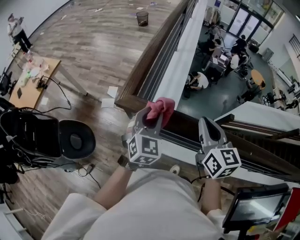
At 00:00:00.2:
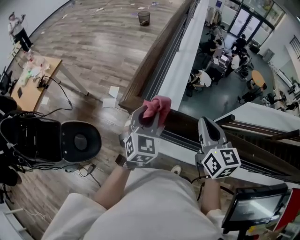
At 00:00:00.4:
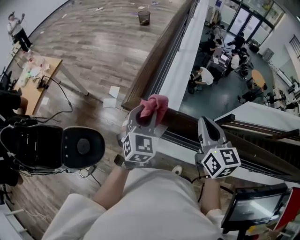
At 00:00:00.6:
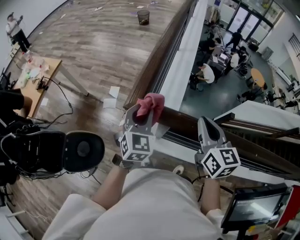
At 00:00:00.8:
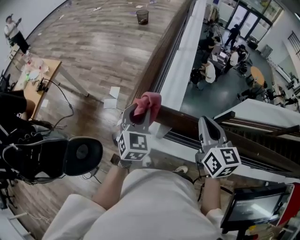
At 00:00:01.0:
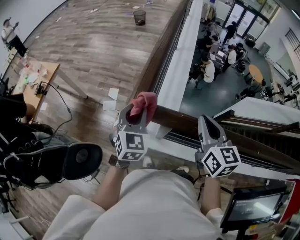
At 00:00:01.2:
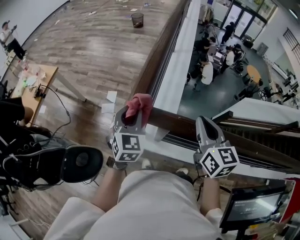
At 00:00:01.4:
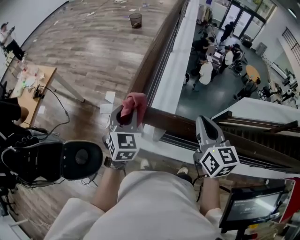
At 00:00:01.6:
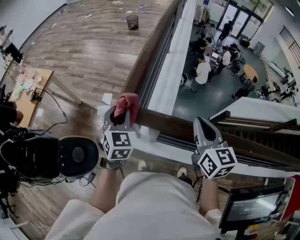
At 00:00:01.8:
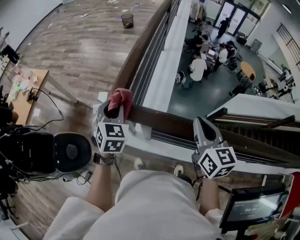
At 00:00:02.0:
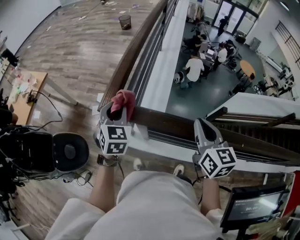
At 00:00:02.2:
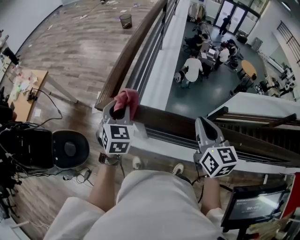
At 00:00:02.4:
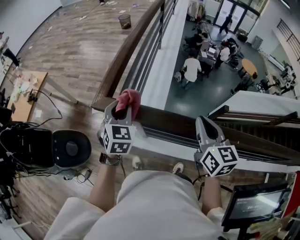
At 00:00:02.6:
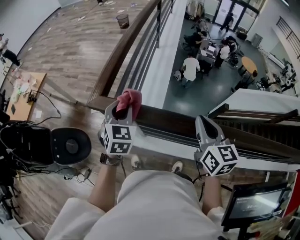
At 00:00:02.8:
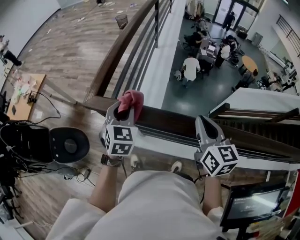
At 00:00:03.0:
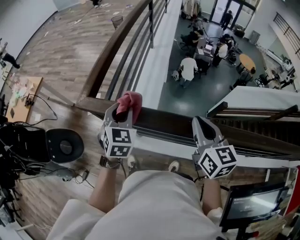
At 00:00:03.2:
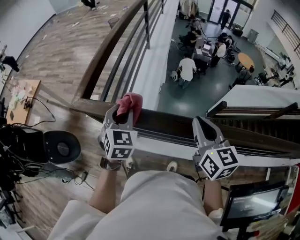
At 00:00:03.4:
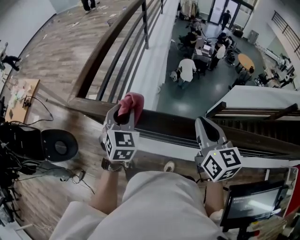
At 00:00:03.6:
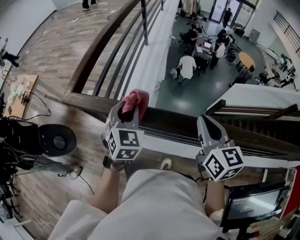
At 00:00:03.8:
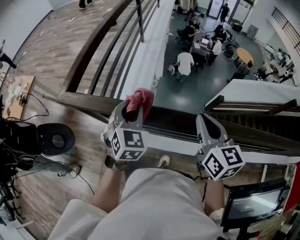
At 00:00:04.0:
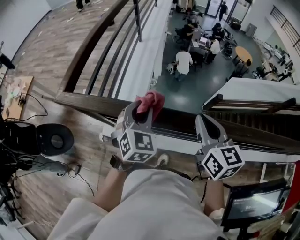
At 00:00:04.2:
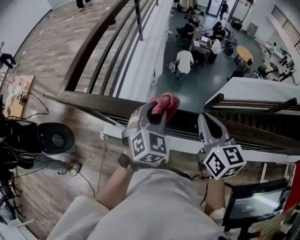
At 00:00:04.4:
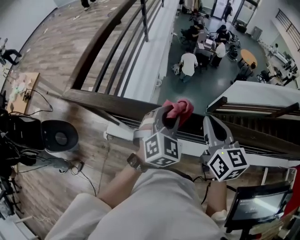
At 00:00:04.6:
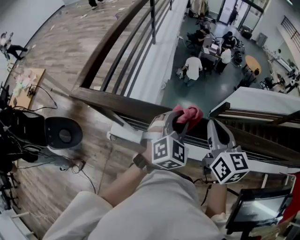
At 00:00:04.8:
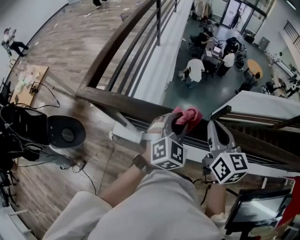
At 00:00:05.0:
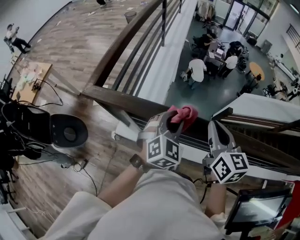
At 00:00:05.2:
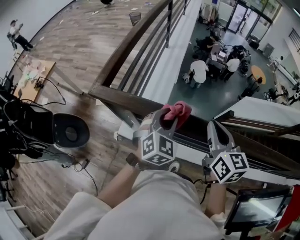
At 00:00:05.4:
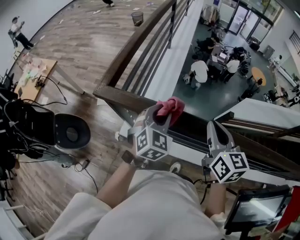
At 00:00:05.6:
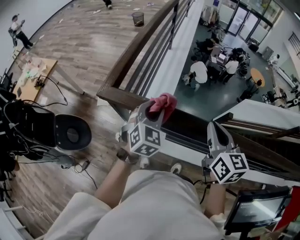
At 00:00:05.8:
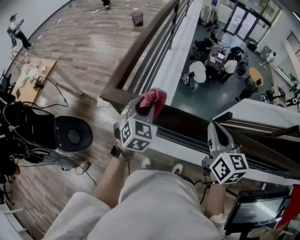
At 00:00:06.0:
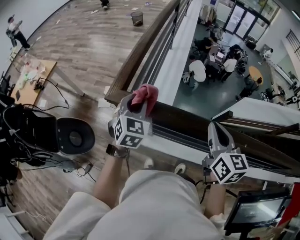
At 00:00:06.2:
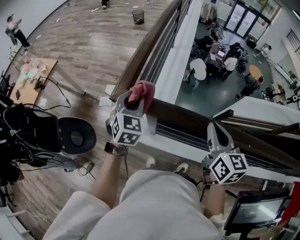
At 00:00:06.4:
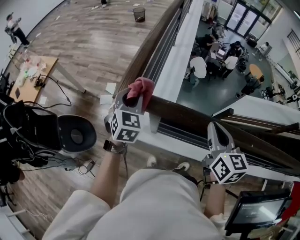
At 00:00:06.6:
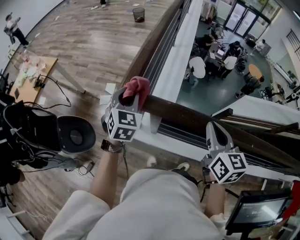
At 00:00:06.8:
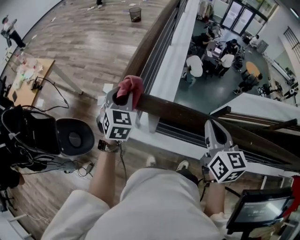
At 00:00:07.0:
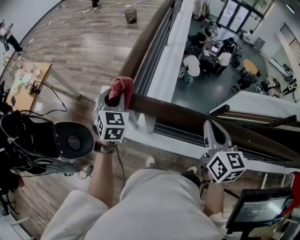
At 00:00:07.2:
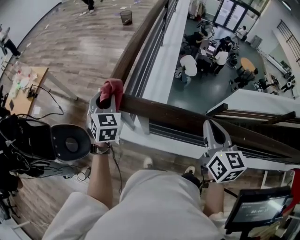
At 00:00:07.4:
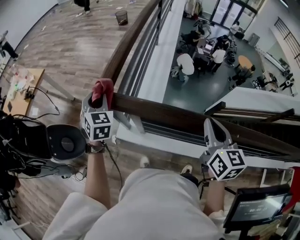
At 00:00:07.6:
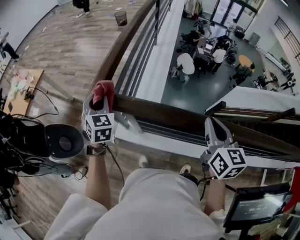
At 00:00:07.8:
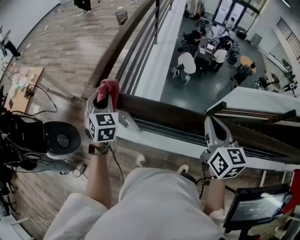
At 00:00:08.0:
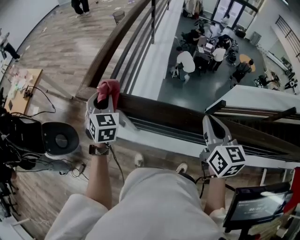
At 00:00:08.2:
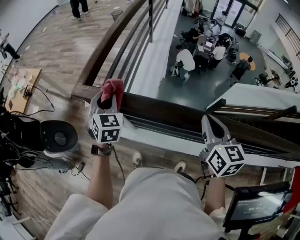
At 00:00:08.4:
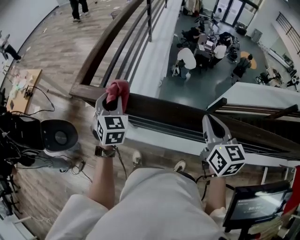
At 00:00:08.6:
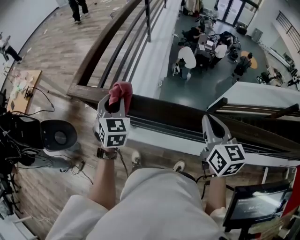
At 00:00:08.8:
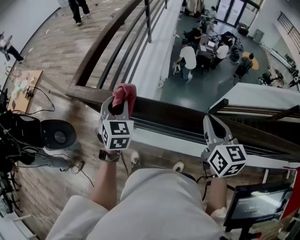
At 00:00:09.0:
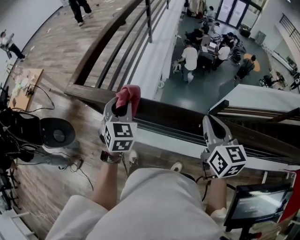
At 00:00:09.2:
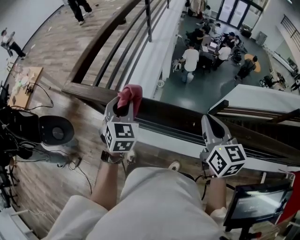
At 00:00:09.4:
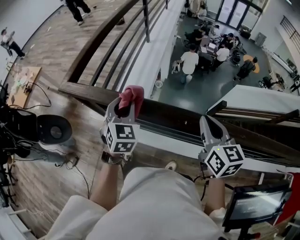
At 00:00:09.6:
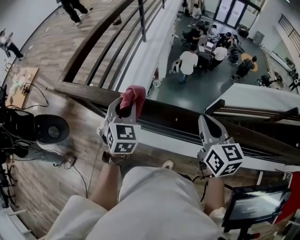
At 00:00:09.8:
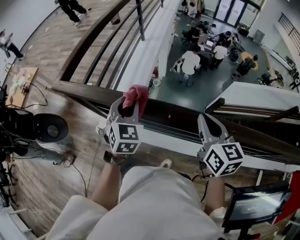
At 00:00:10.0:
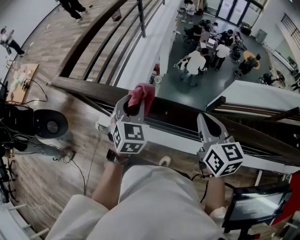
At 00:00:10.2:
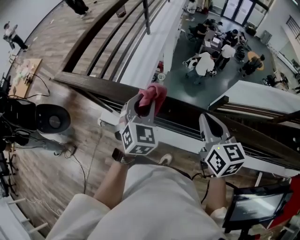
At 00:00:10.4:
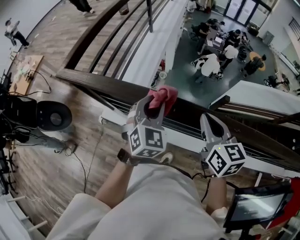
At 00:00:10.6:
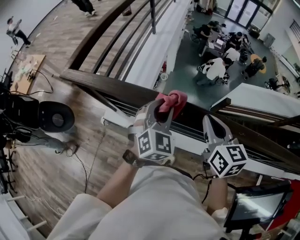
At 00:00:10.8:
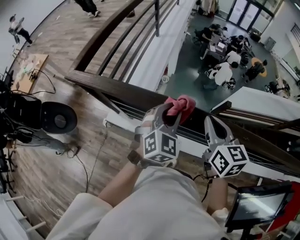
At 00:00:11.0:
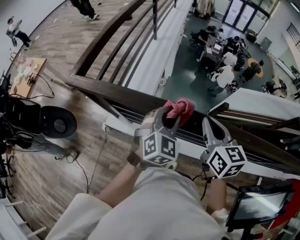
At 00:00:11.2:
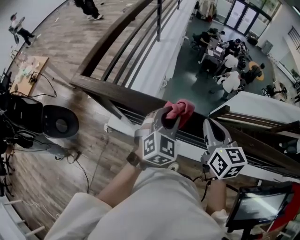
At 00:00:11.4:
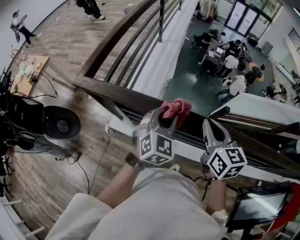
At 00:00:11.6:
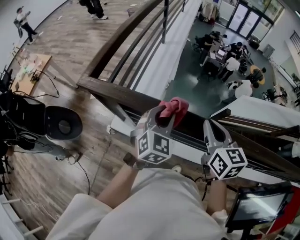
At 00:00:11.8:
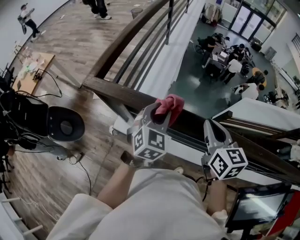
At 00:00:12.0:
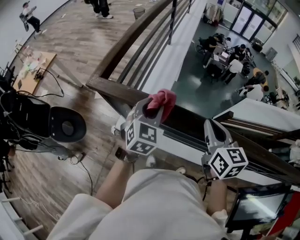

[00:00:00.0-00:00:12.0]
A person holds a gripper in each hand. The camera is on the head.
00:00:00.0 to 00:00:01.6: The left gripper shifts about 15 cm to the left and forward.
00:00:01.6 to 00:00:03.0: The right gripper is displaced to the right and backward by approximately 15 cm. Meanwhile the left gripper heads to the right, covering about 15 cm.
00:00:03.0 to 00:00:04.4: The left gripper heads to the right, covering roughly 25 cm, and changes its angle by roughly 20 degrees, while the right gripper moves to the right, about 10 cm.
00:00:04.4 to 00:00:06.0: The right gripper travels to the left by about 20 cm; the left gripper travels to the left by some 35 cm, and swivels some 20 degrees.
00:00:06.0 to 00:00:07.6: The right gripper travels to the right by some 5 cm. The left gripper moves to the left, some 10 cm.
00:00:07.6 to 00:00:09.0: The left gripper moves to the right and backward, roughly 25 cm, while the right gripper shifts roughly 10 cm to the right.
00:00:09.0 to 00:00:10.4: The left gripper moves to the right and backward, roughly 20 cm. Meanwhile the right gripper is displaced to the right by some 5 cm.
00:00:10.4 to 00:00:12.0: Both grippers move to the left, about 15 cm.

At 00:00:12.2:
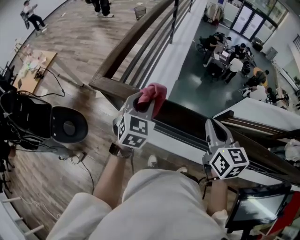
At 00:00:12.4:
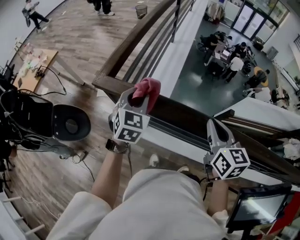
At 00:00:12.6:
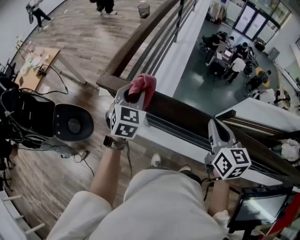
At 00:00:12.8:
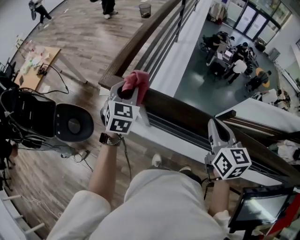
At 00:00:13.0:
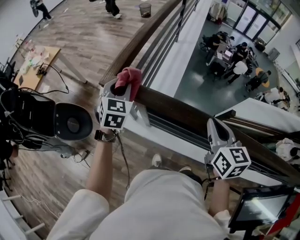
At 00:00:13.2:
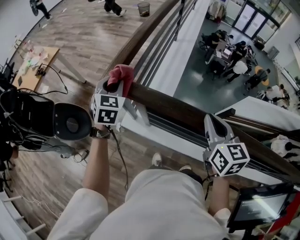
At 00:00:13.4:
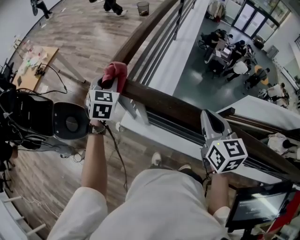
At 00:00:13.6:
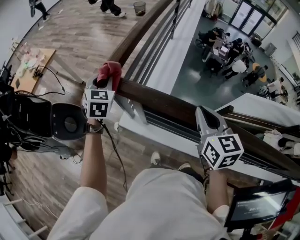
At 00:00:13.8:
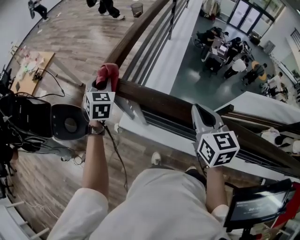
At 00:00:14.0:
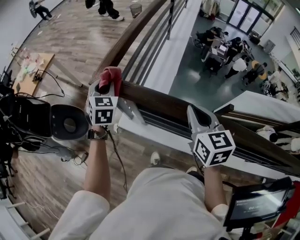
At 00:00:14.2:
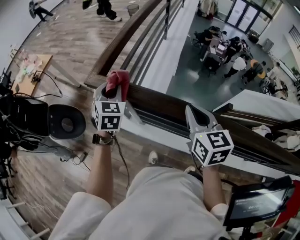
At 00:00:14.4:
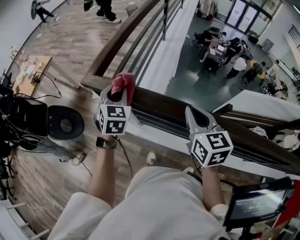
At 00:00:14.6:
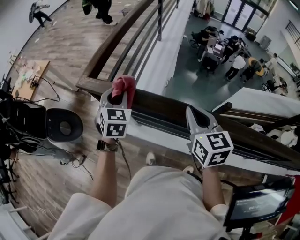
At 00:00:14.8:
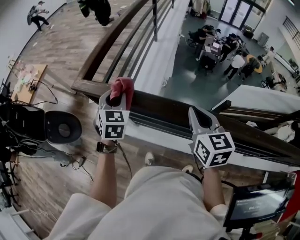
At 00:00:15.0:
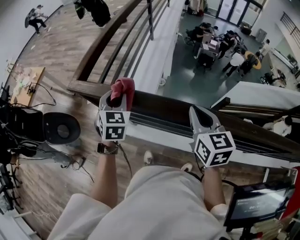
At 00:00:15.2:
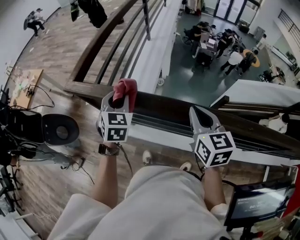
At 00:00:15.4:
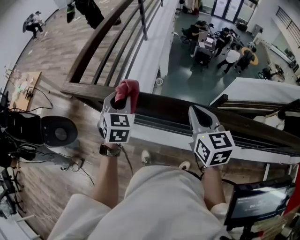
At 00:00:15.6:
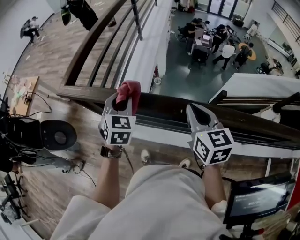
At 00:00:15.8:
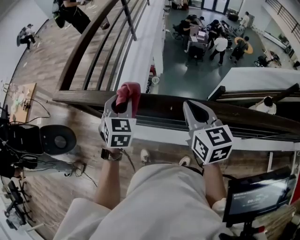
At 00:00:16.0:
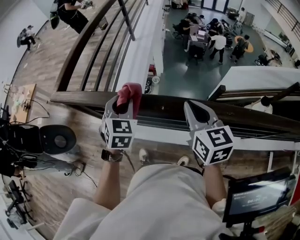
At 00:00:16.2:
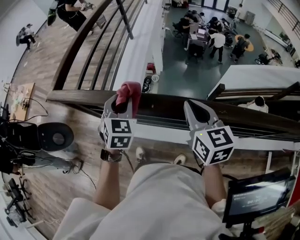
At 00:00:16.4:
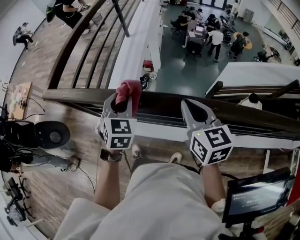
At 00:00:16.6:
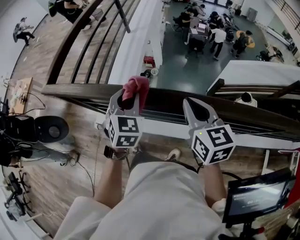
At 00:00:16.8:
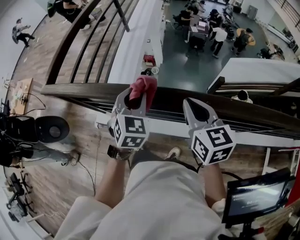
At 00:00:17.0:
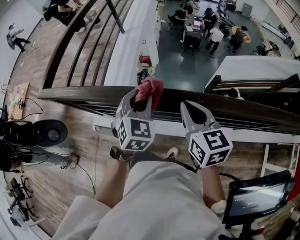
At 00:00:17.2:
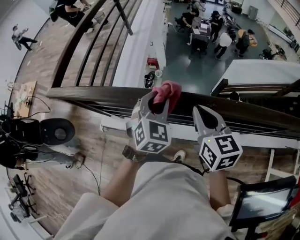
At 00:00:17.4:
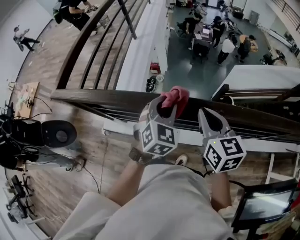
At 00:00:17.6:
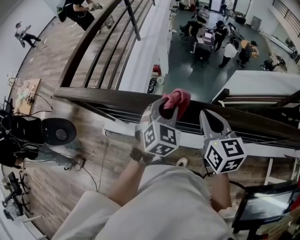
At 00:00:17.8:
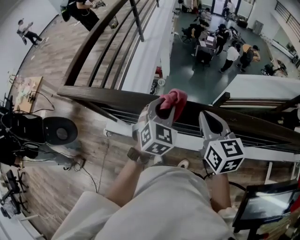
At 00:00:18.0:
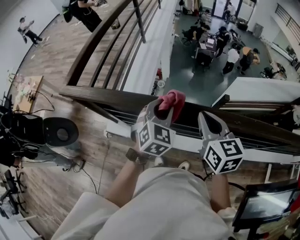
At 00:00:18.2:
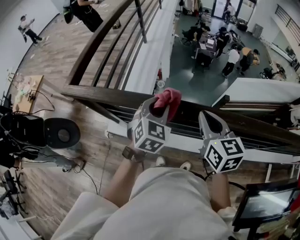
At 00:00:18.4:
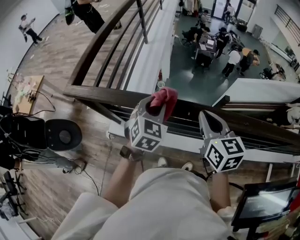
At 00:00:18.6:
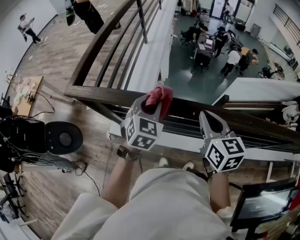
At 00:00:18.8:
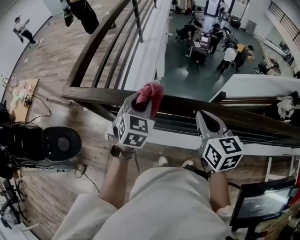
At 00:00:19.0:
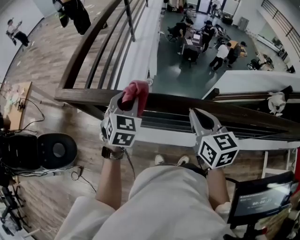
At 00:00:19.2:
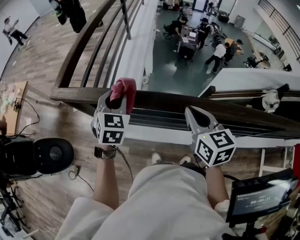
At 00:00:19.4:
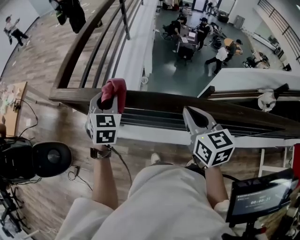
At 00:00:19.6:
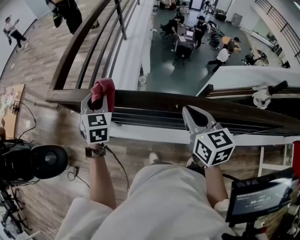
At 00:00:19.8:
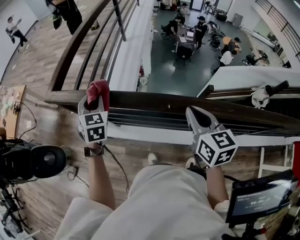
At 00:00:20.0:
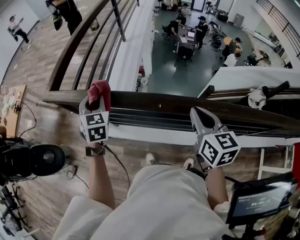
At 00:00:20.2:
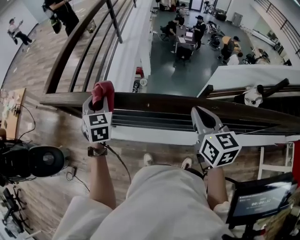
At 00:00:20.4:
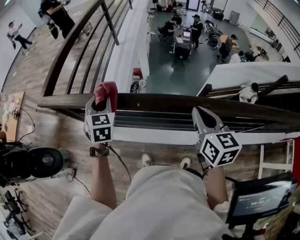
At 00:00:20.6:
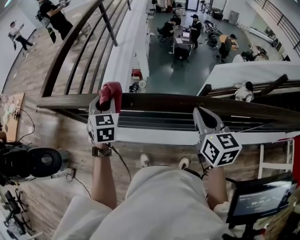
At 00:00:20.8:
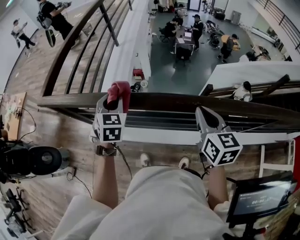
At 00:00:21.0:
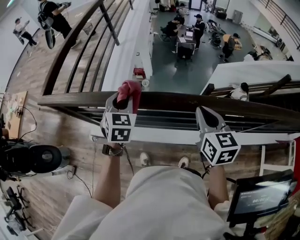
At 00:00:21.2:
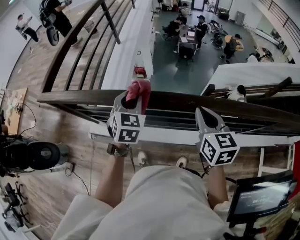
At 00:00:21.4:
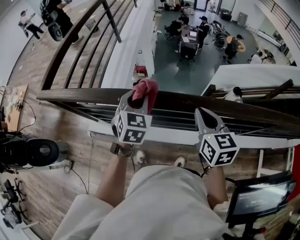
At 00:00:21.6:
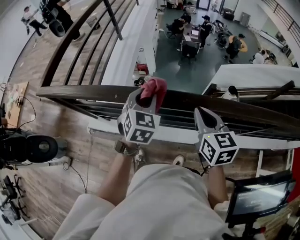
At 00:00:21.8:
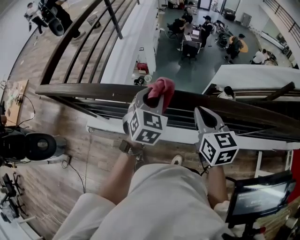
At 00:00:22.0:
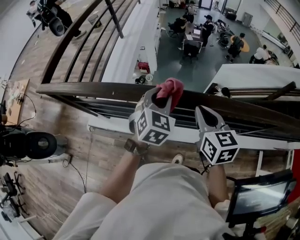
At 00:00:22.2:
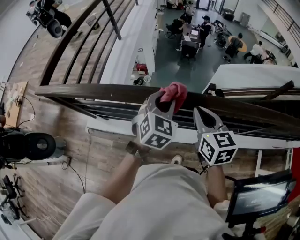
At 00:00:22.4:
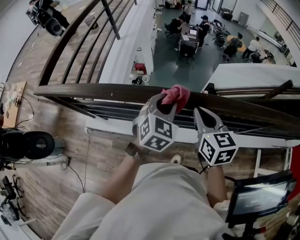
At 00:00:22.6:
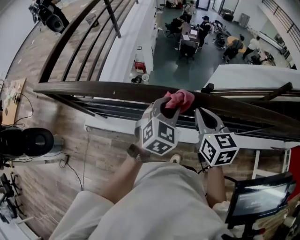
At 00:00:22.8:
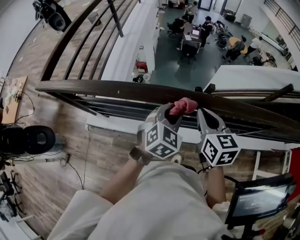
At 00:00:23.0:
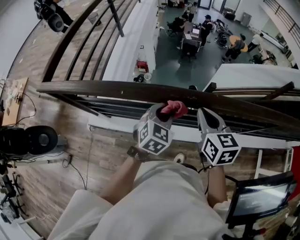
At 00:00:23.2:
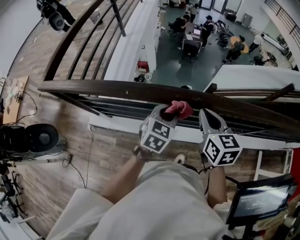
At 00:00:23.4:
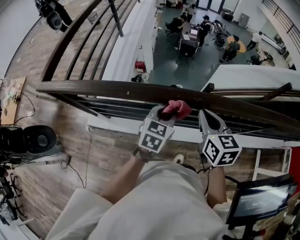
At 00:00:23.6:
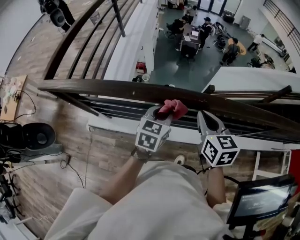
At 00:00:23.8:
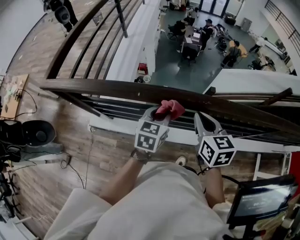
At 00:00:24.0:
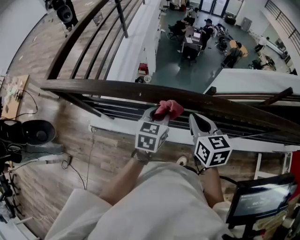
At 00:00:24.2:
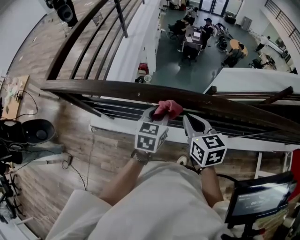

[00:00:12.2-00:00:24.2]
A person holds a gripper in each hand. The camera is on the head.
00:00:12.2 to 00:00:13.8: The right gripper travels to the left by about 5 cm, while the left gripper goes approximately 20 cm to the left and forward, and rotates roughly 20 degrees.
00:00:13.8 to 00:00:15.2: The left gripper moves to the right and backward, some 25 cm. Meanwhile the right gripper is displaced to the right and backward by some 15 cm.
00:00:15.2 to 00:00:16.6: The left gripper shifts approximately 25 cm to the right. The right gripper travels to the right and backward by roughly 15 cm.
00:00:16.6 to 00:00:18.2: The left gripper reaches some 10 cm to the right, then returns, while the right gripper travels to the left by some 10 cm.
00:00:18.2 to 00:00:19.8: The left gripper heads to the left, covering some 20 cm, and changes its angle by some 30 degrees.
00:00:19.8 to 00:00:21.2: The left gripper heads to the right, covering roughly 30 cm. Meanwhile the right gripper heads to the right, covering about 20 cm.
00:00:21.2 to 00:00:22.6: The left gripper goes some 20 cm to the right.
00:00:22.6 to 00:00:24.2: The two grippers go about 10 cm to the left. The left gripper changes its angle by roughly 30 degrees.
